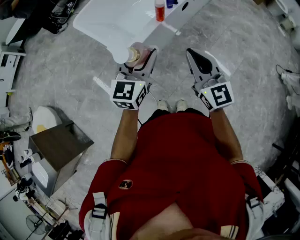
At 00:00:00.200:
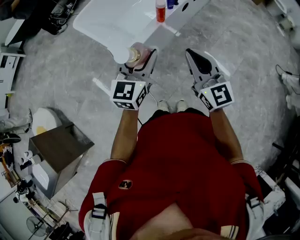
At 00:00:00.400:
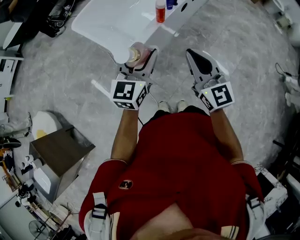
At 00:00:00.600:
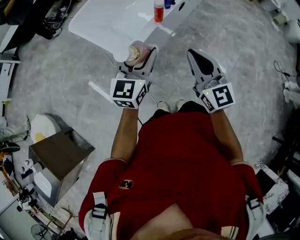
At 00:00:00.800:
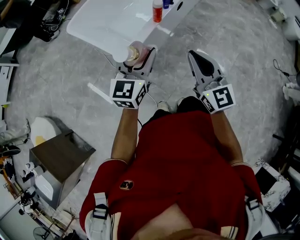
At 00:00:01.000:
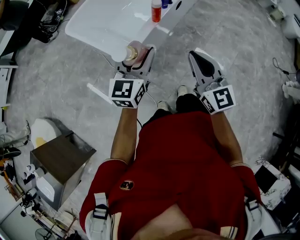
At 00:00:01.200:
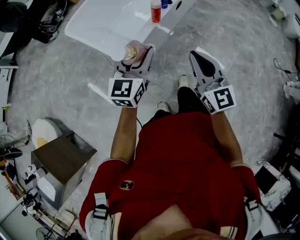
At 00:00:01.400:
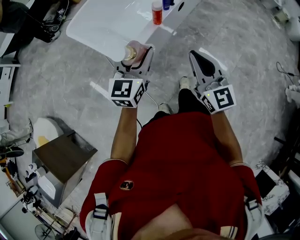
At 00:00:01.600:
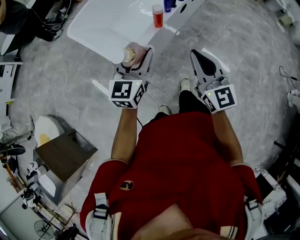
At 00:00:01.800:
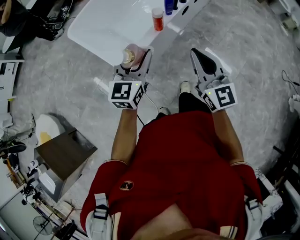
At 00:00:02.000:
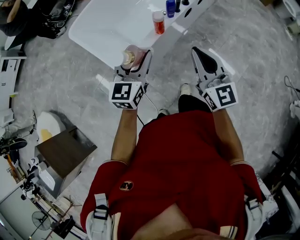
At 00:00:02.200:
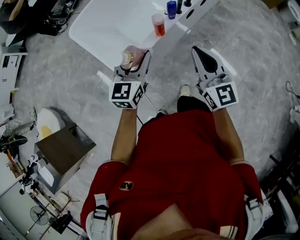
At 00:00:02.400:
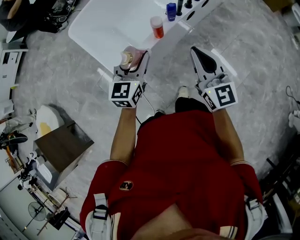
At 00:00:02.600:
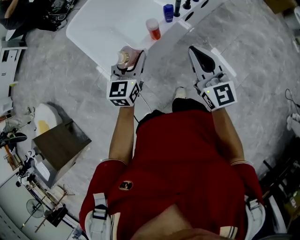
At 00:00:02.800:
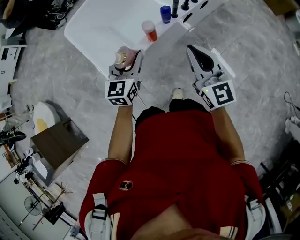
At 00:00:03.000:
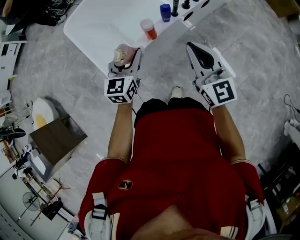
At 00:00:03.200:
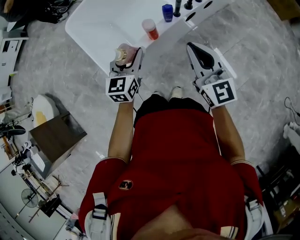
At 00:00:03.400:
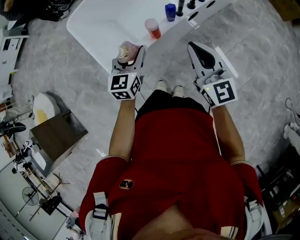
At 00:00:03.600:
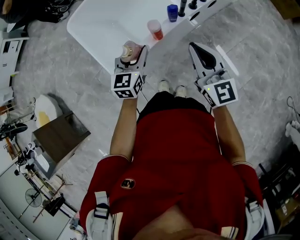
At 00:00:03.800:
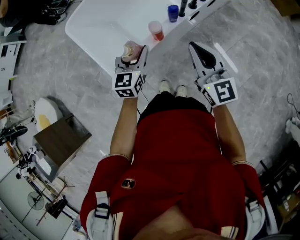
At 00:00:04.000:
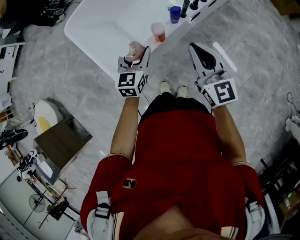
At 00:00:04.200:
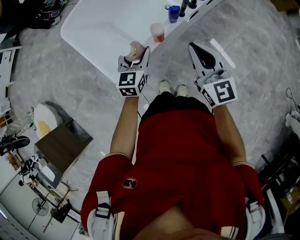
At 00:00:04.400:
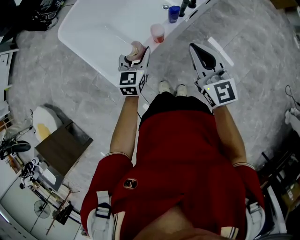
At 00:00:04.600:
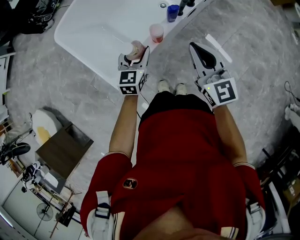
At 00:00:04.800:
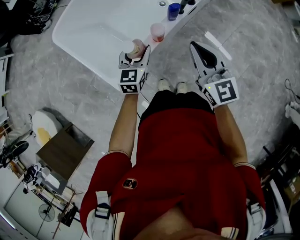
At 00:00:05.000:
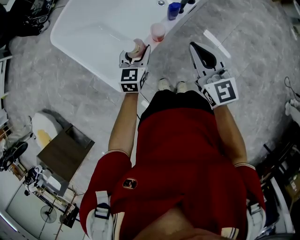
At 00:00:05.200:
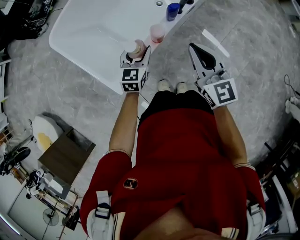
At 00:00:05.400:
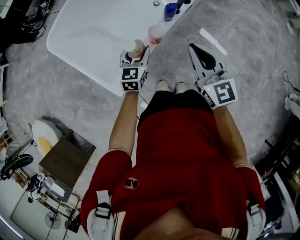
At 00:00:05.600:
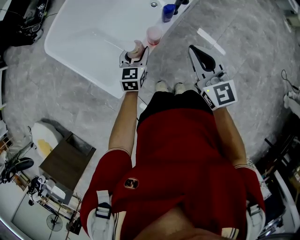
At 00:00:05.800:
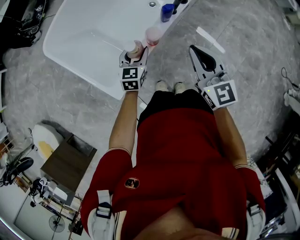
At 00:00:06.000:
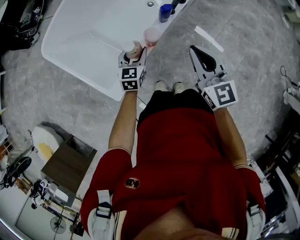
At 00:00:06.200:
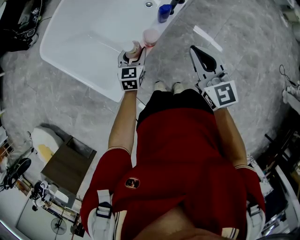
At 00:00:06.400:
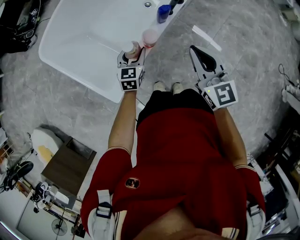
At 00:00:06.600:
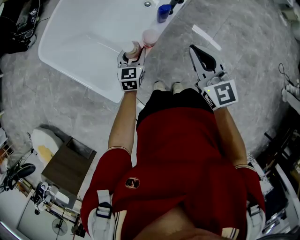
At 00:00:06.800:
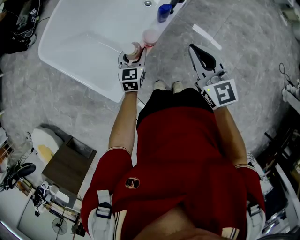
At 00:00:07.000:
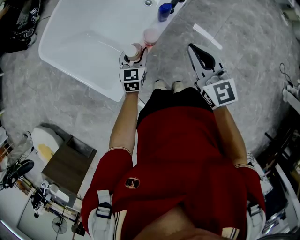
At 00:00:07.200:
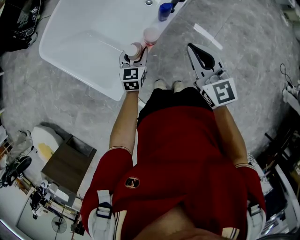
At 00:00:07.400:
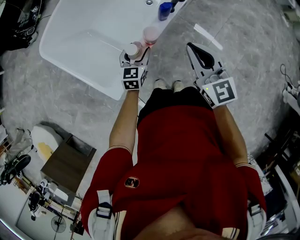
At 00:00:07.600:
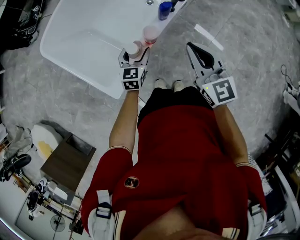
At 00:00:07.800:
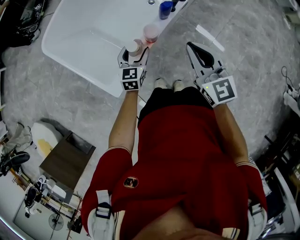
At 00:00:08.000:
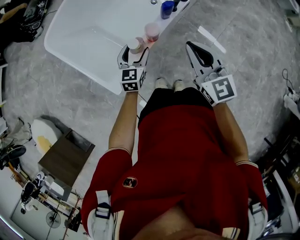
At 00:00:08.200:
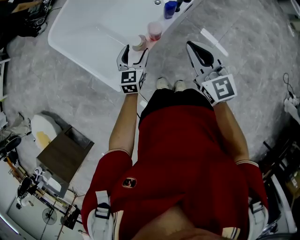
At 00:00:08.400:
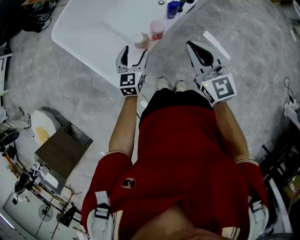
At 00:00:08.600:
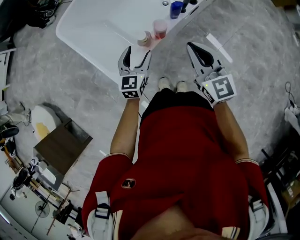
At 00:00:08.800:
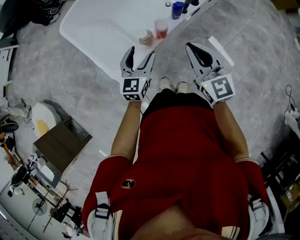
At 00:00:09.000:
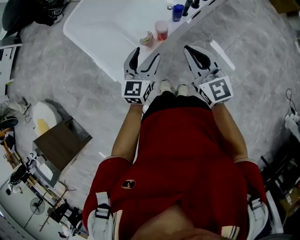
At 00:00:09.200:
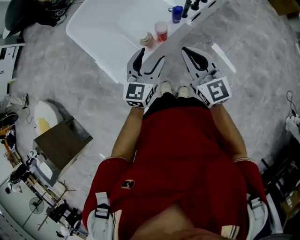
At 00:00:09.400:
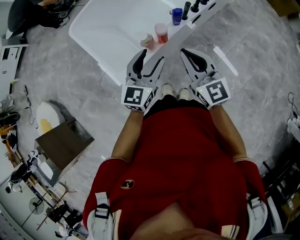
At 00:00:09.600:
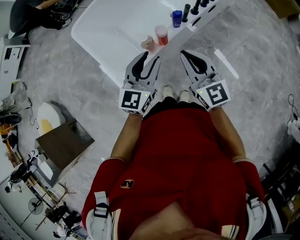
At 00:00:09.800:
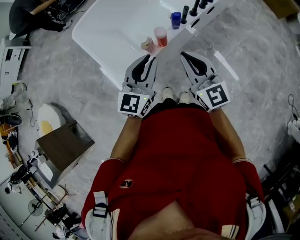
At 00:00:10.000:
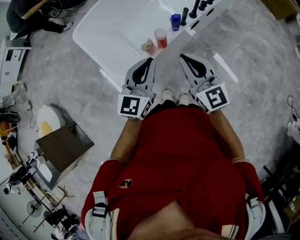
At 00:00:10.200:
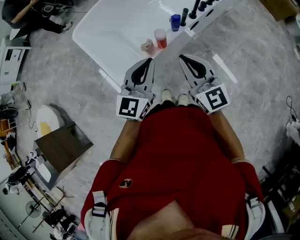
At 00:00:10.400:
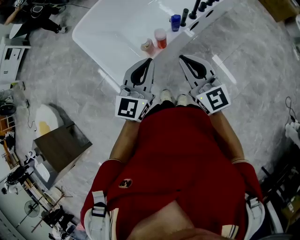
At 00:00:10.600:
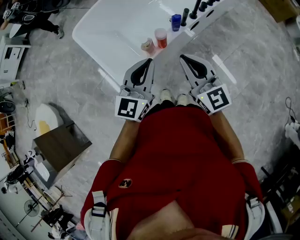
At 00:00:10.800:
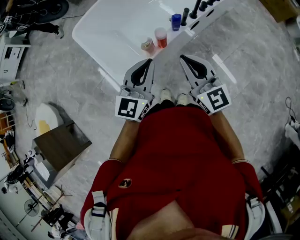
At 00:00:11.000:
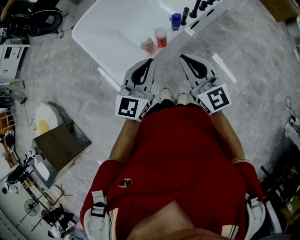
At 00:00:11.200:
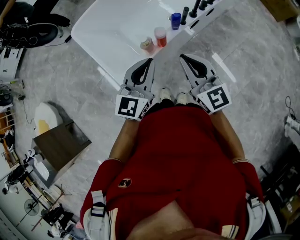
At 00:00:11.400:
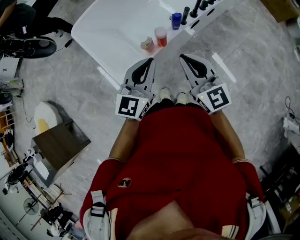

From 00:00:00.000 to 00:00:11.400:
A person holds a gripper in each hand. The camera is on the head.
From 00:00:00.000 to 00:00:01.400: The left gripper moves forward, about 5 cm.
From 00:00:01.400 to 00:00:02.800: The left gripper travels forward, downward and to the right by roughly 20 cm. The right gripper heads forward and to the right, covering roughly 25 cm.
From 00:00:02.800 to 00:00:04.200: The left gripper shifts roughly 10 cm forward and downward. Meanwhile the right gripper travels forward by about 5 cm.
From 00:00:04.200 to 00:00:05.600: The left gripper is displaced downward and forward by roughly 10 cm; the right gripper goes approximately 5 cm downward.
From 00:00:05.600 to 00:00:07.200: The grippers move only a little.
From 00:00:07.200 to 00:00:08.600: The left gripper moves upward and backward, some 15 cm. The right gripper ends up some 5 cm from where it was.
From 00:00:08.600 to 00:00:10.000: The left gripper is displaced upward and backward by some 20 cm, and closes up; the right gripper moves upward and backward, about 10 cm.
From 00:00:10.000 to 00:00:11.400: The grippers move only a little.

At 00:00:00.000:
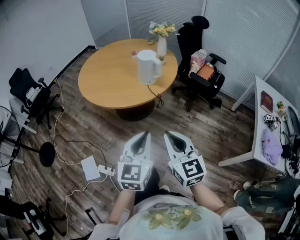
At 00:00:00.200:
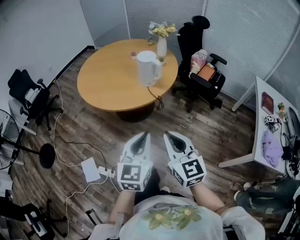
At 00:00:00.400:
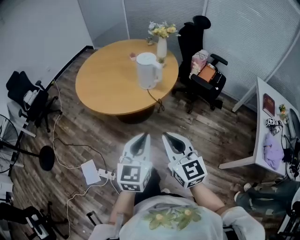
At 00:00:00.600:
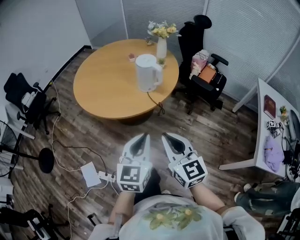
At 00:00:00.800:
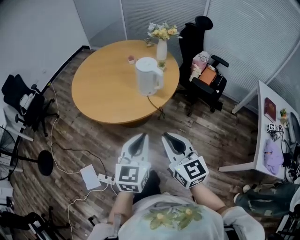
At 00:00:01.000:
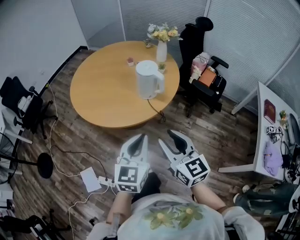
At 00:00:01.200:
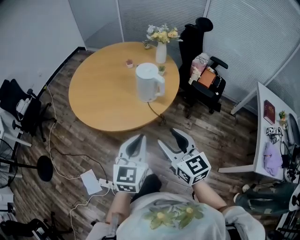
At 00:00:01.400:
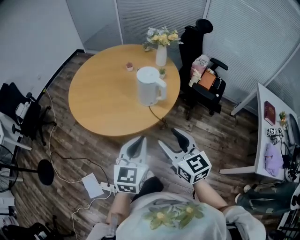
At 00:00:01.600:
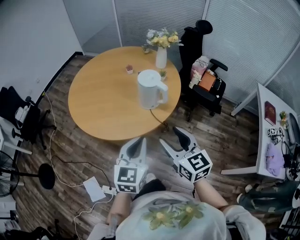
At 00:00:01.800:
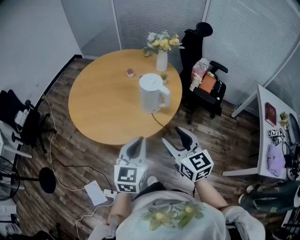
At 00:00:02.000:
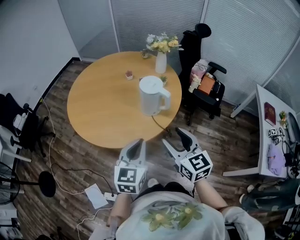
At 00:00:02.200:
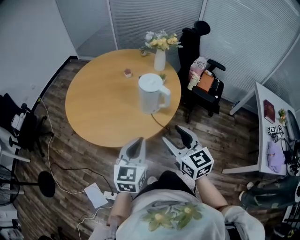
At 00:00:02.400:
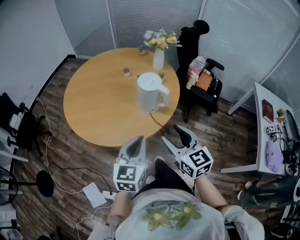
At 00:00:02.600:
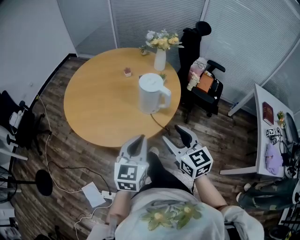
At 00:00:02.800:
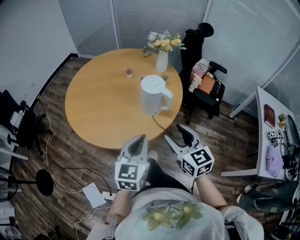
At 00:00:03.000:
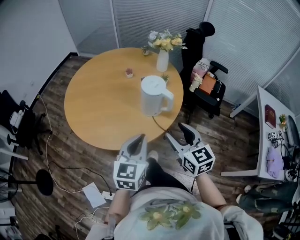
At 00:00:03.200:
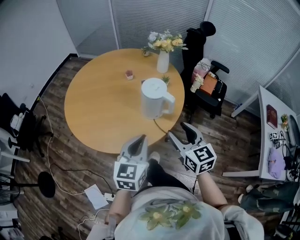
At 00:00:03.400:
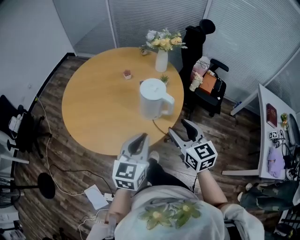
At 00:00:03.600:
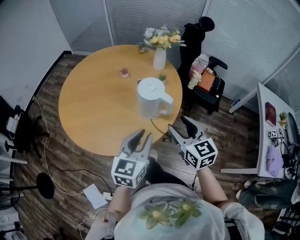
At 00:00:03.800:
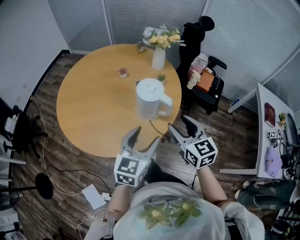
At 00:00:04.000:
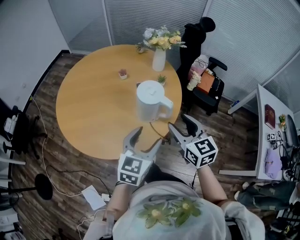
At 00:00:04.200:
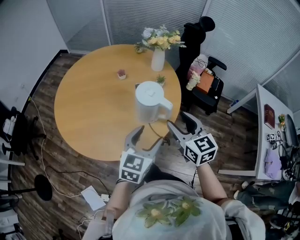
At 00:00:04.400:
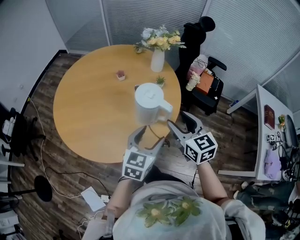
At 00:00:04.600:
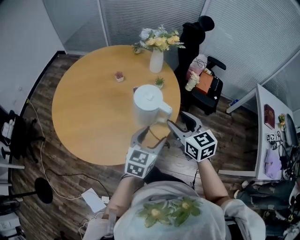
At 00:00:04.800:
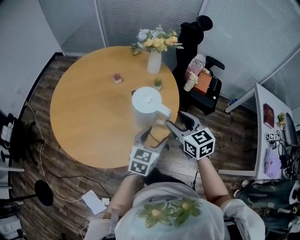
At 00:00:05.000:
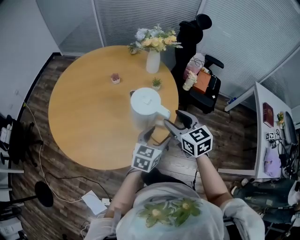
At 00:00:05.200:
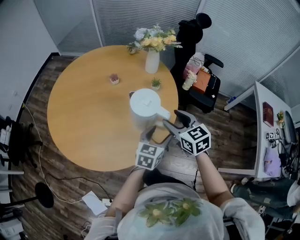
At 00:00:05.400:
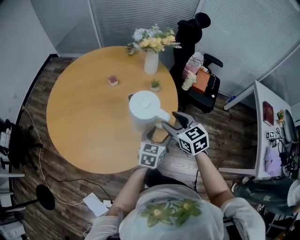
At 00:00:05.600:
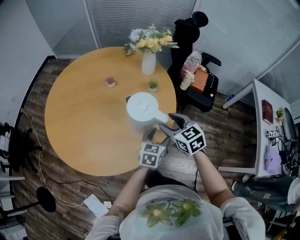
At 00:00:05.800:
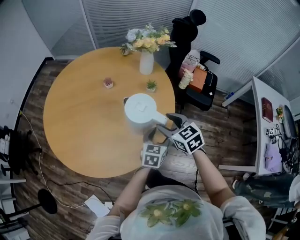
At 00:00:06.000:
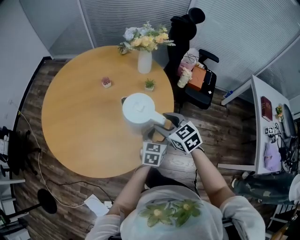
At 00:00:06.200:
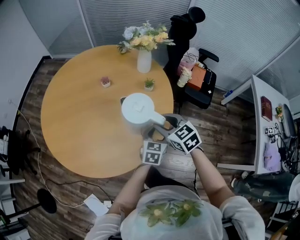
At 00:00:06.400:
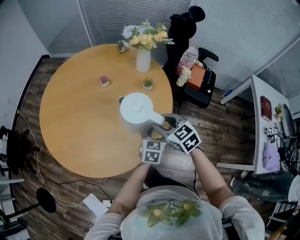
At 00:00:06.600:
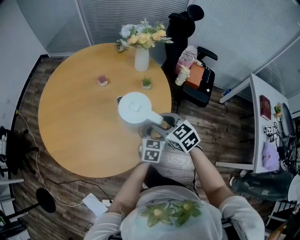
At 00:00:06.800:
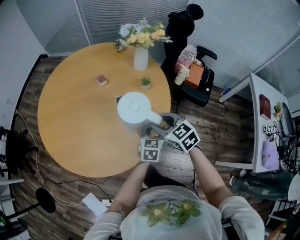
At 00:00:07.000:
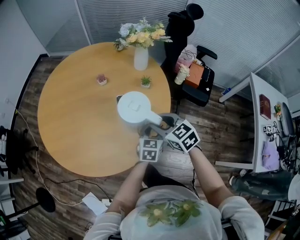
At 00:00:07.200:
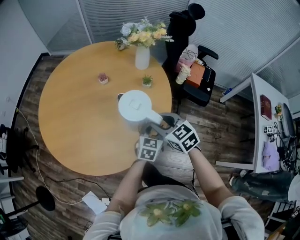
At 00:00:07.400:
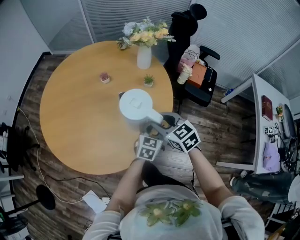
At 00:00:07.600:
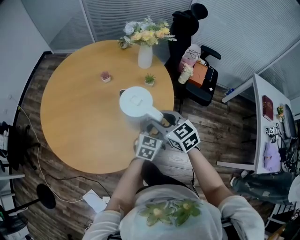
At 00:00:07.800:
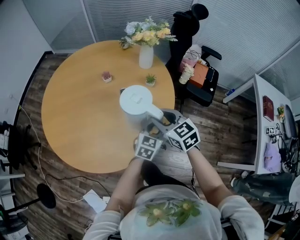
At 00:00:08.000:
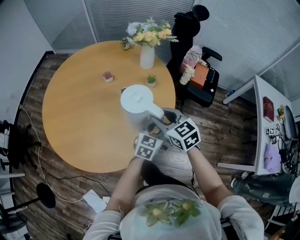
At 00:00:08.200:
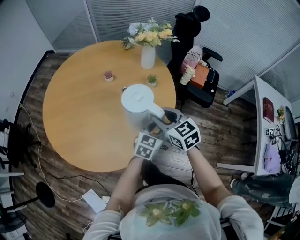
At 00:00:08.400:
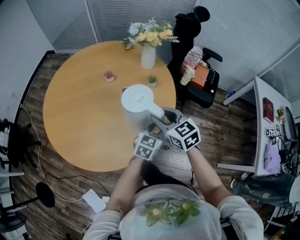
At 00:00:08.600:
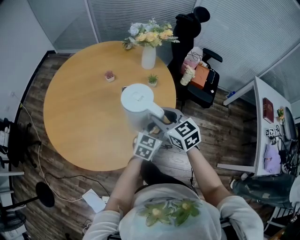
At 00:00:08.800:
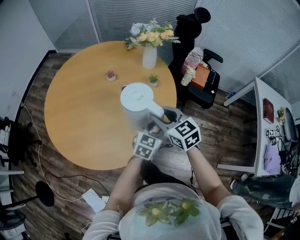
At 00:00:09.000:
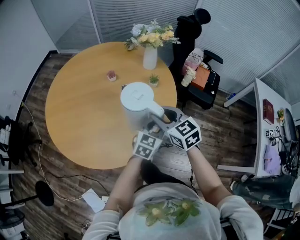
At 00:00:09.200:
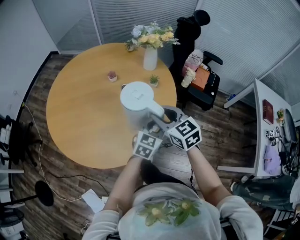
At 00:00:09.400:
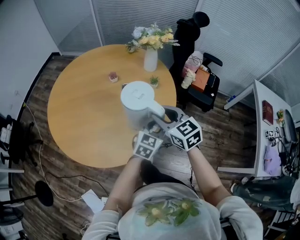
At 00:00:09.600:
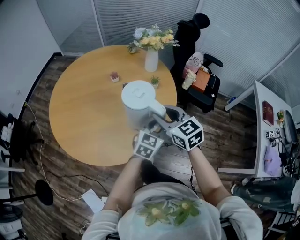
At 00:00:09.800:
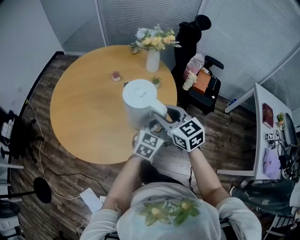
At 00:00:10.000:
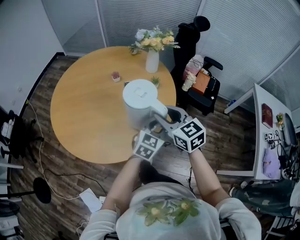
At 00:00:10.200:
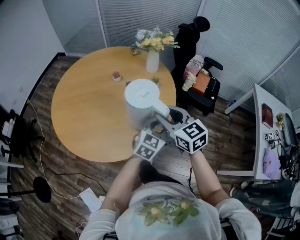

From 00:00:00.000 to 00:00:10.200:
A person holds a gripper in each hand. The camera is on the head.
From 00:00:00.000 to 00:00:01.400: Both grippers move forward, some 20 cm. The right gripper opens up.
From 00:00:01.400 to 00:00:03.000: The grippers both shift forward by roughly 10 cm.
From 00:00:03.000 to 00:00:04.400: The left gripper shifts approximately 15 cm forward, to the right and downward, and opens its fingers, while the right gripper goes roughly 15 cm forward.
From 00:00:04.400 to 00:00:05.800: The right gripper travels downward and forward by approximately 10 cm; the left gripper travels downward, forward and to the right by about 20 cm.
From 00:00:05.800 to 00:00:07.200: The left gripper closes its fingers.
From 00:00:07.200 to 00:00:08.800: The left gripper shifts by roughly 5 cm.
From 00:00:08.800 to 00:00:10.200: Both grippers move upward and backward, approximately 10 cm.

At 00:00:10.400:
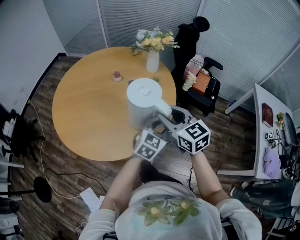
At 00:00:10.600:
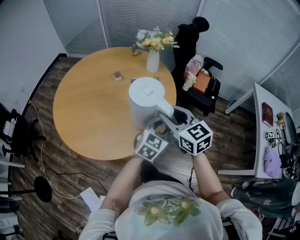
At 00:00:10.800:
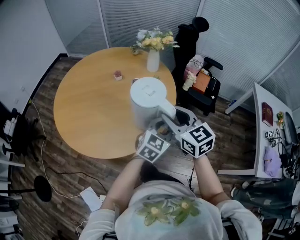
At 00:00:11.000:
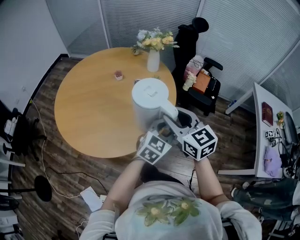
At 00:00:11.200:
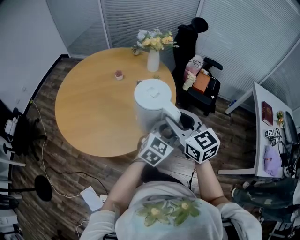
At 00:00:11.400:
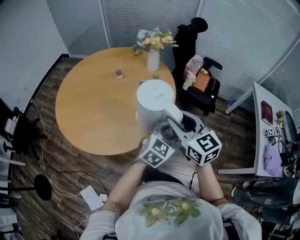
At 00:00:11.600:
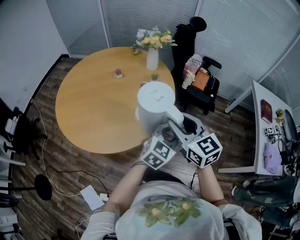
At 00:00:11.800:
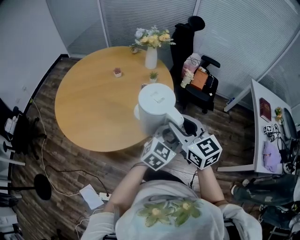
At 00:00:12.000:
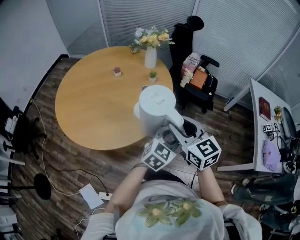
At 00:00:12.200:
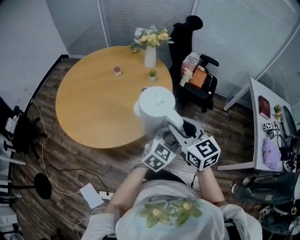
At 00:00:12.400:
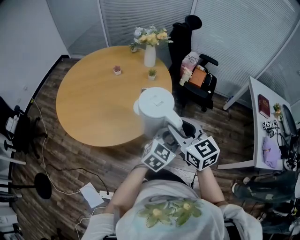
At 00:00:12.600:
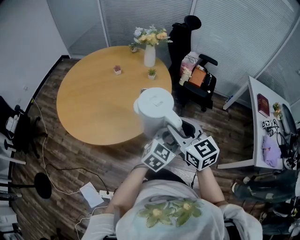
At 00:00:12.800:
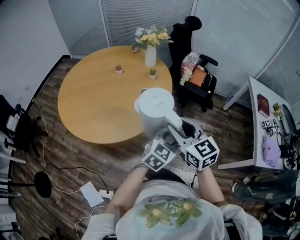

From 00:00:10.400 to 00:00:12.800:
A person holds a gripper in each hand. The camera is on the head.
From 00:00:10.400 to 00:00:11.600: The two grippers go roughly 10 cm backward and to the right.
From 00:00:11.600 to 00:00:12.800: The two grippers go approximately 10 cm backward.
